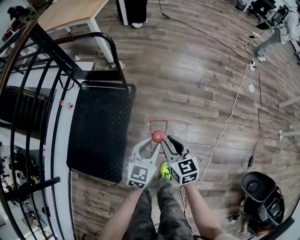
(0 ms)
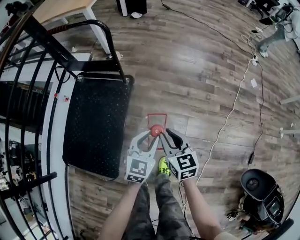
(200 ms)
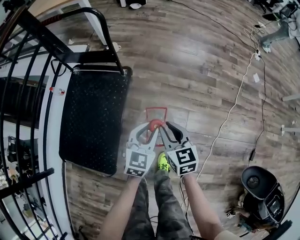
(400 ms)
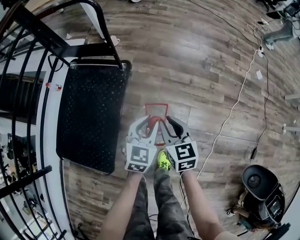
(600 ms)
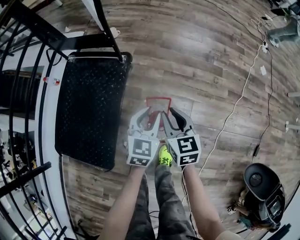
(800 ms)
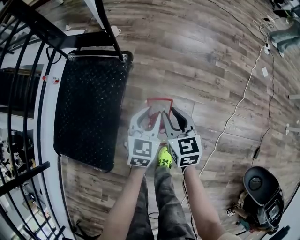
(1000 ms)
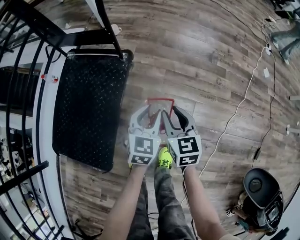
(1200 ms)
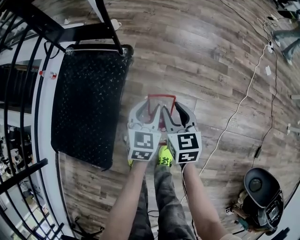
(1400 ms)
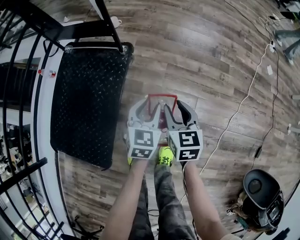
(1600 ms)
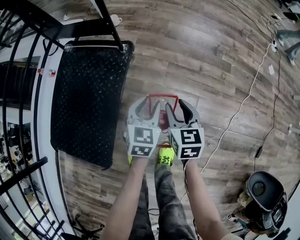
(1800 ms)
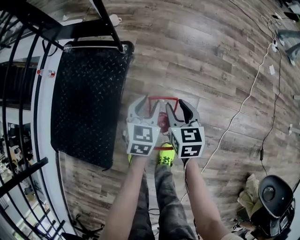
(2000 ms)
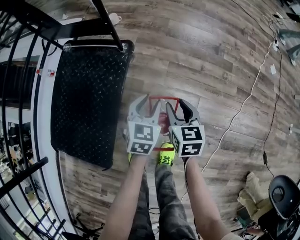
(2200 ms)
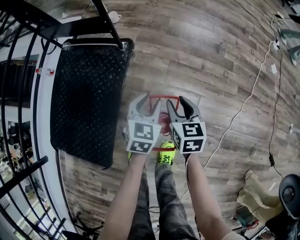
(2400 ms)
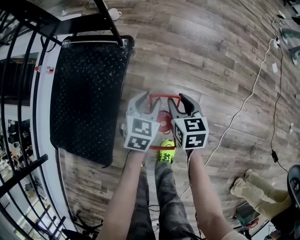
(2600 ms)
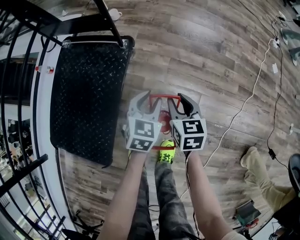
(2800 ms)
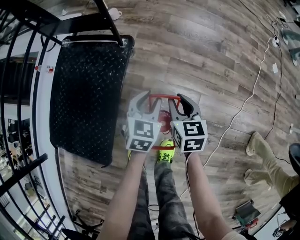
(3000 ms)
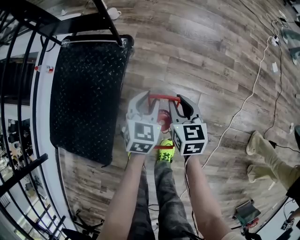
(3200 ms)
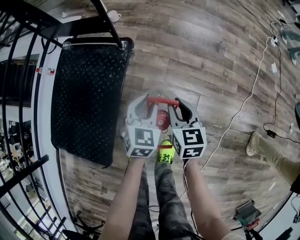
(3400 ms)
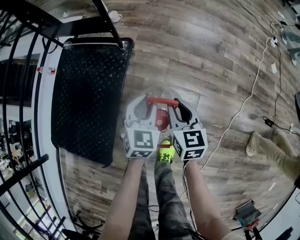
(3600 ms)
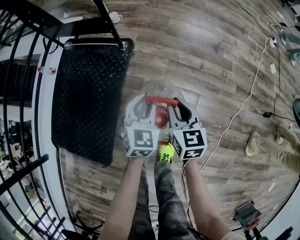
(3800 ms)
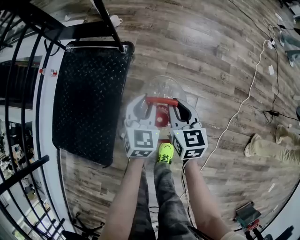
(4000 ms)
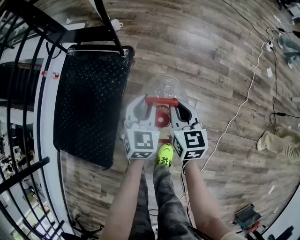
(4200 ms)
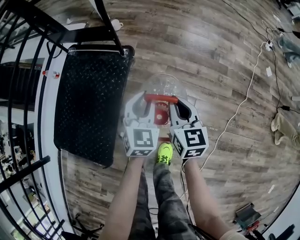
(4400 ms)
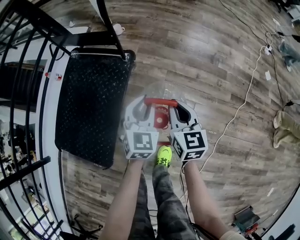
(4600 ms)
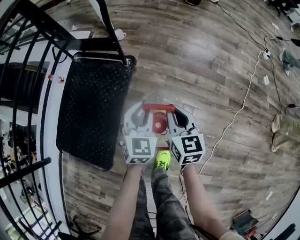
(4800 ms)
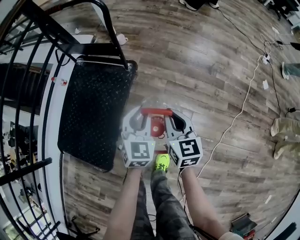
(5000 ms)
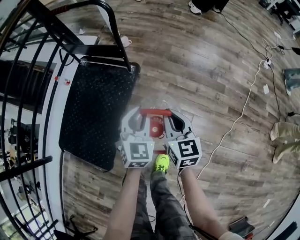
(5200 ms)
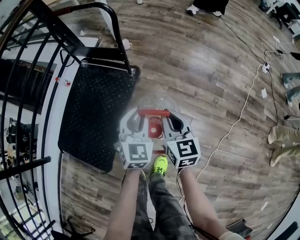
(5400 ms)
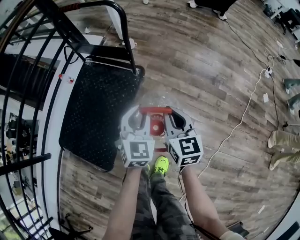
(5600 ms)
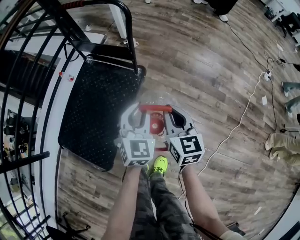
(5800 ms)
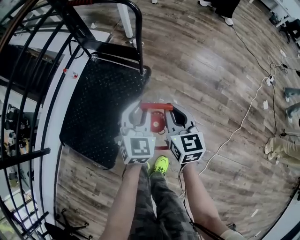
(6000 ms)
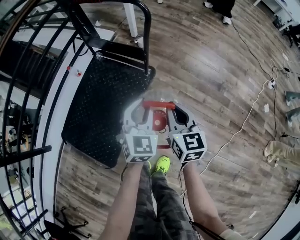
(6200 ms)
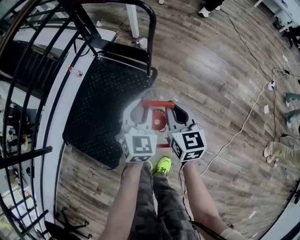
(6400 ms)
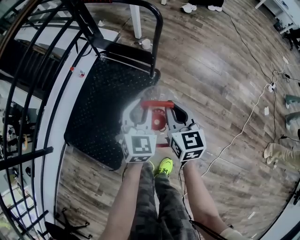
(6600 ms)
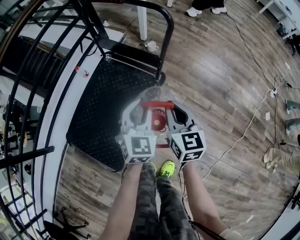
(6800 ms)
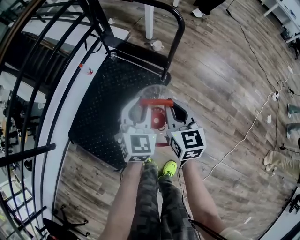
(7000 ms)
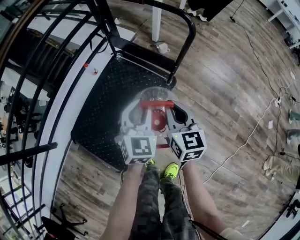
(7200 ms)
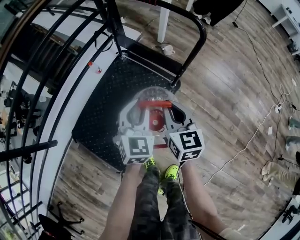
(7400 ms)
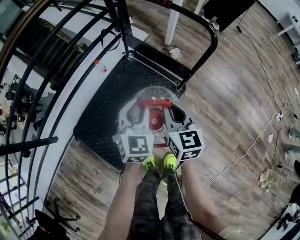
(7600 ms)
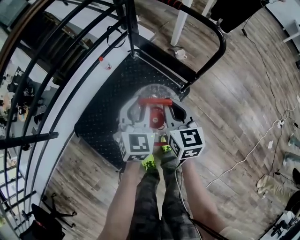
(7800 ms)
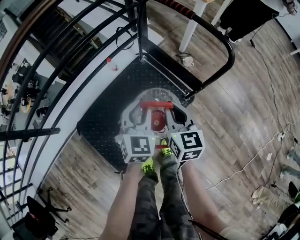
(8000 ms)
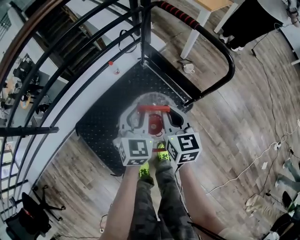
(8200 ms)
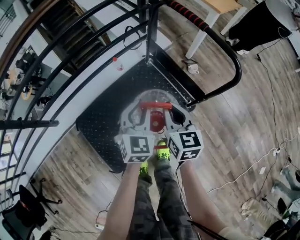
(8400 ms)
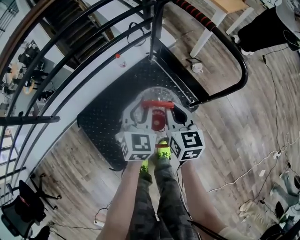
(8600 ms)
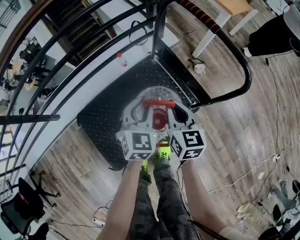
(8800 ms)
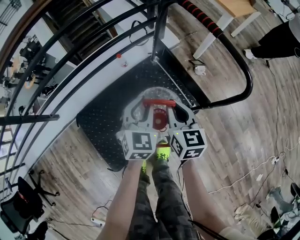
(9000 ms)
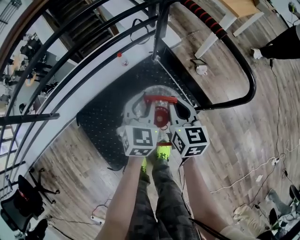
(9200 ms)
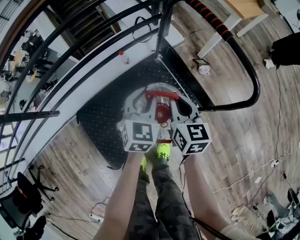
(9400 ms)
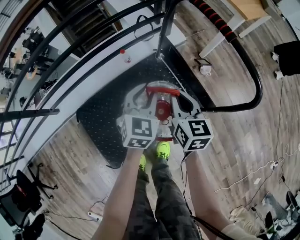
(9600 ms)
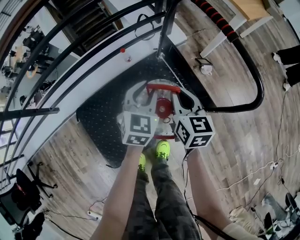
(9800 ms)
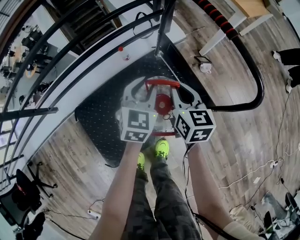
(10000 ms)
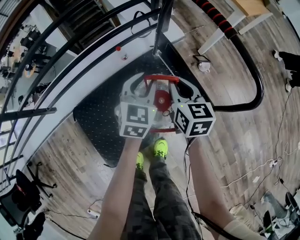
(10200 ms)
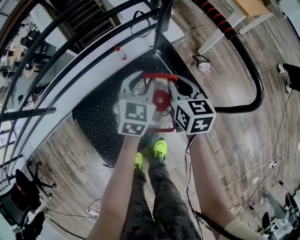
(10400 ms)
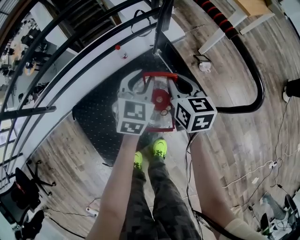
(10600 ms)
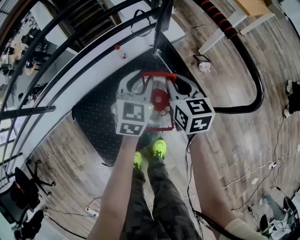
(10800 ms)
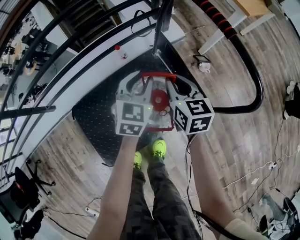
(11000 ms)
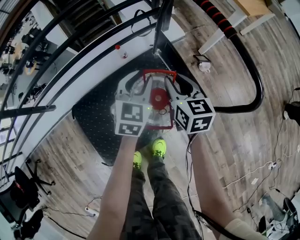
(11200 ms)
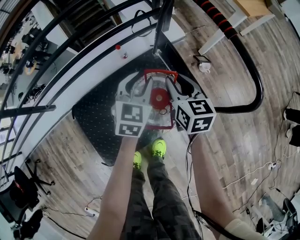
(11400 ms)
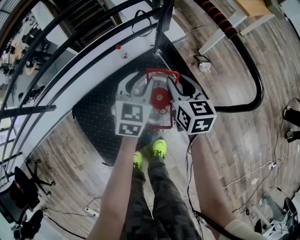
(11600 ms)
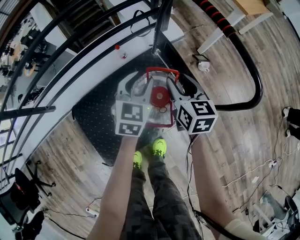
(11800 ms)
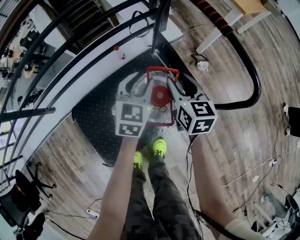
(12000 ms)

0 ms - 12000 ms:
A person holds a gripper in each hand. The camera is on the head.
0 ms - 1600 ms: The grippers both shift downward by about 20 cm.
1600 ms - 3000 ms: The right gripper moves roughly 5 cm. The left gripper changes place by about 5 cm.
3000 ms - 4400 ms: Both grippers move upward, about 10 cm.
4400 ms - 6000 ms: Both grippers travel together upward and to the left, approximately 15 cm.
6000 ms - 7600 ms: The grippers both shift to the left and forward by about 30 cm.
7600 ms - 9000 ms: The grippers both shift forward by about 15 cm.
9000 ms - 10400 ms: Both grippers move forward, some 10 cm.
10400 ms - 12000 ms: The right gripper opens its fingers.

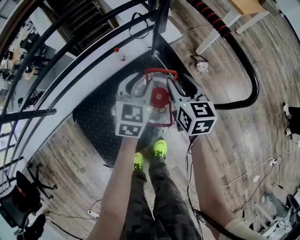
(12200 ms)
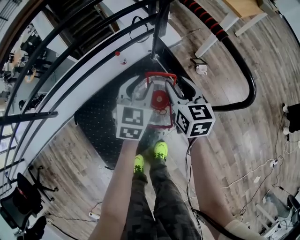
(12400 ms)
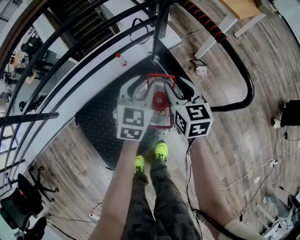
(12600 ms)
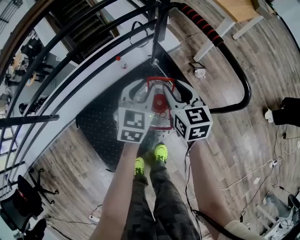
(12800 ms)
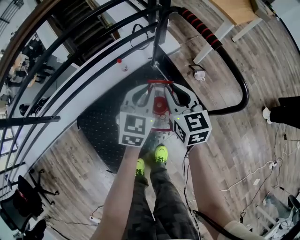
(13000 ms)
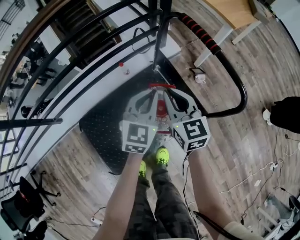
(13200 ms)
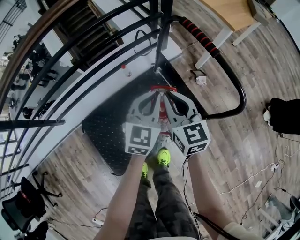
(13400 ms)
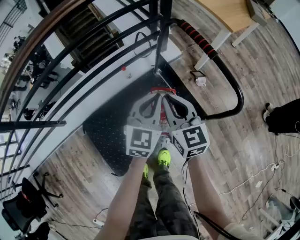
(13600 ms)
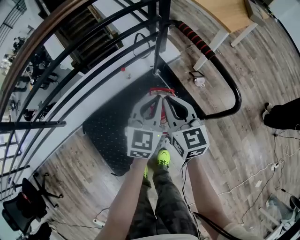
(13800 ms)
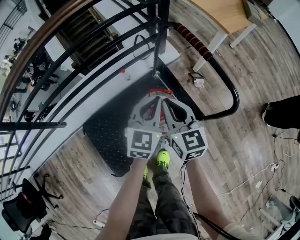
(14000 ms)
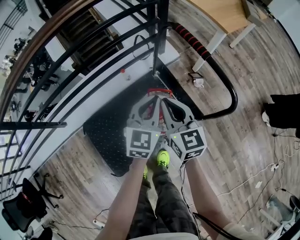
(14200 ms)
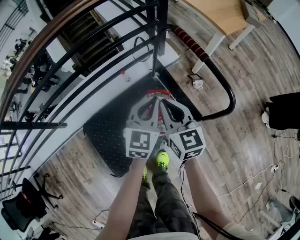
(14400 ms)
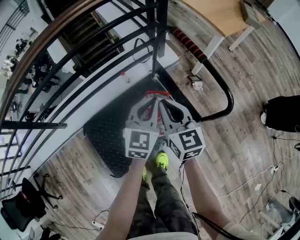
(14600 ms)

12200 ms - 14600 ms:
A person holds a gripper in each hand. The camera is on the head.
12200 ms - 13400 ms: The grippers both shift upward by some 10 cm. The left gripper closes its fingers. Meanwhile the right gripper closes its fingers.
13400 ms - 14600 ms: The left gripper ends up approximately 5 cm from where it was. Meanwhile the right gripper shifts by roughly 5 cm.

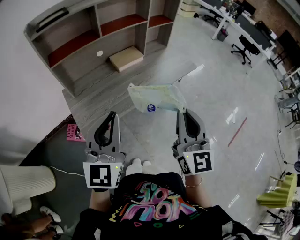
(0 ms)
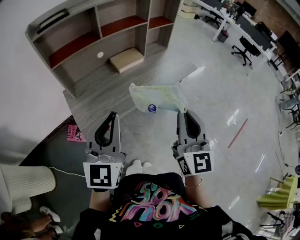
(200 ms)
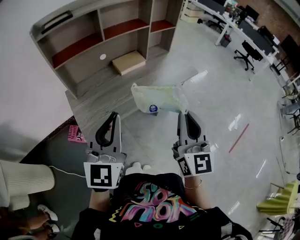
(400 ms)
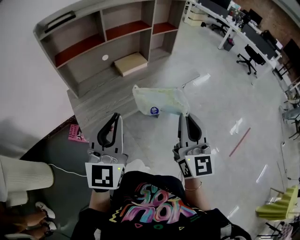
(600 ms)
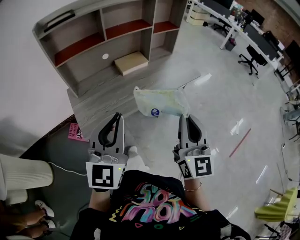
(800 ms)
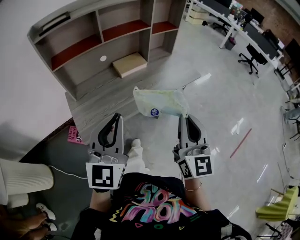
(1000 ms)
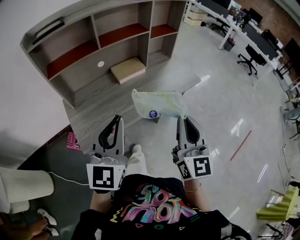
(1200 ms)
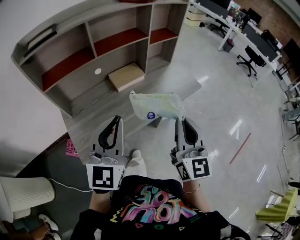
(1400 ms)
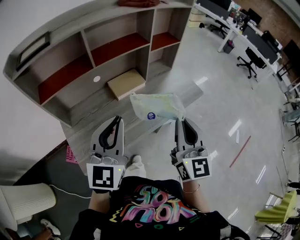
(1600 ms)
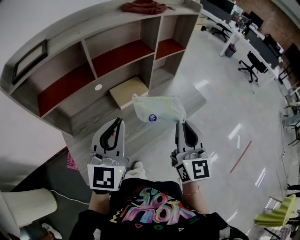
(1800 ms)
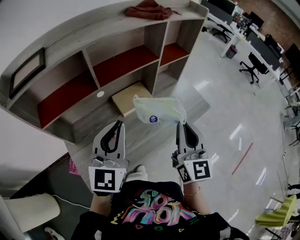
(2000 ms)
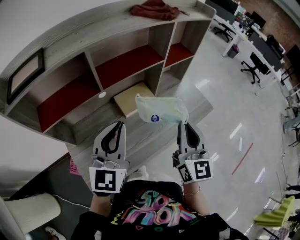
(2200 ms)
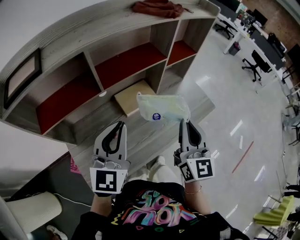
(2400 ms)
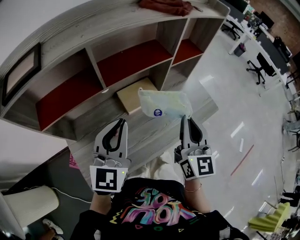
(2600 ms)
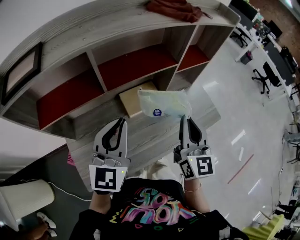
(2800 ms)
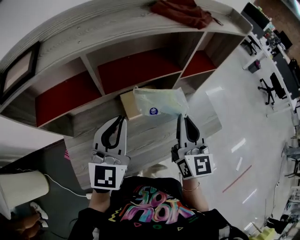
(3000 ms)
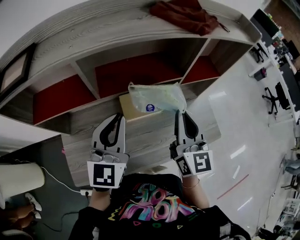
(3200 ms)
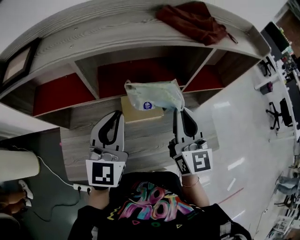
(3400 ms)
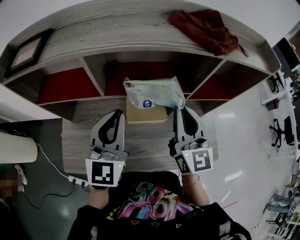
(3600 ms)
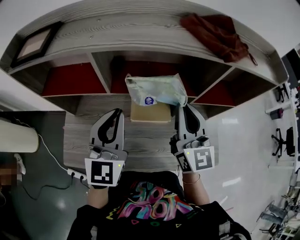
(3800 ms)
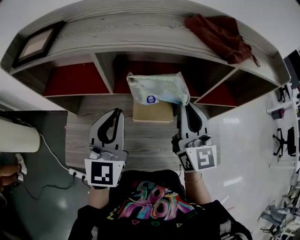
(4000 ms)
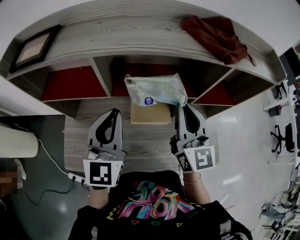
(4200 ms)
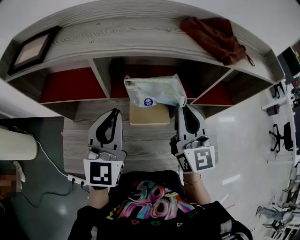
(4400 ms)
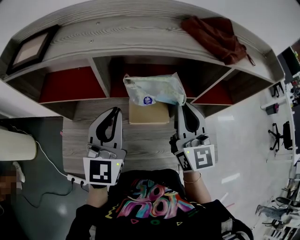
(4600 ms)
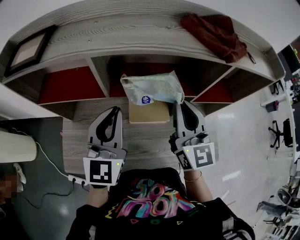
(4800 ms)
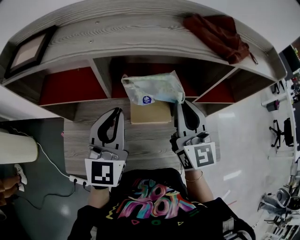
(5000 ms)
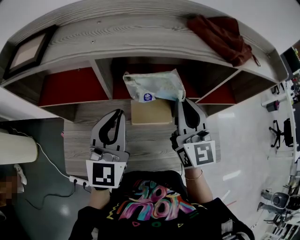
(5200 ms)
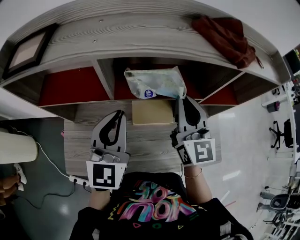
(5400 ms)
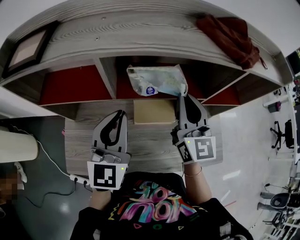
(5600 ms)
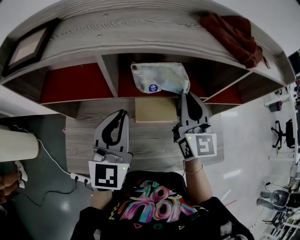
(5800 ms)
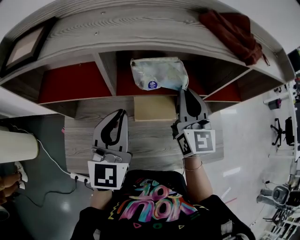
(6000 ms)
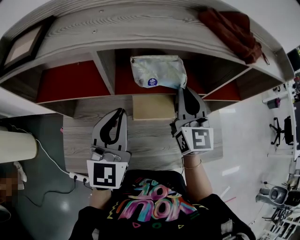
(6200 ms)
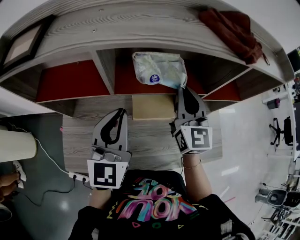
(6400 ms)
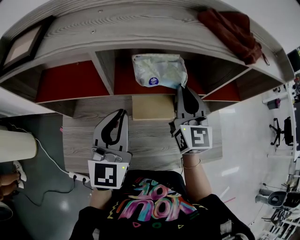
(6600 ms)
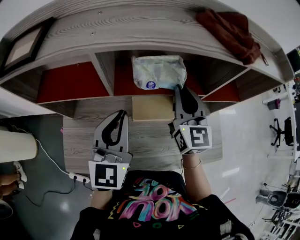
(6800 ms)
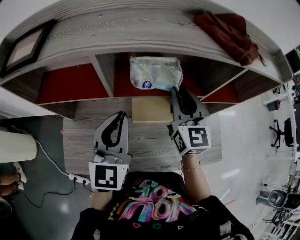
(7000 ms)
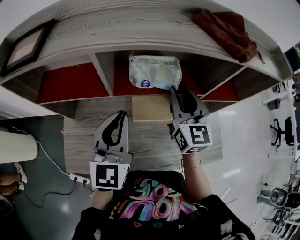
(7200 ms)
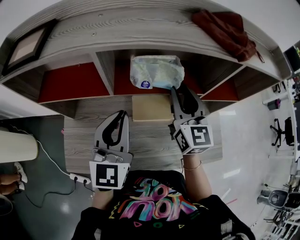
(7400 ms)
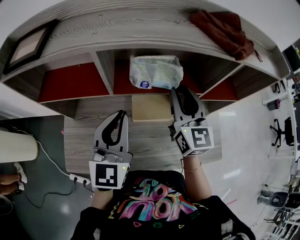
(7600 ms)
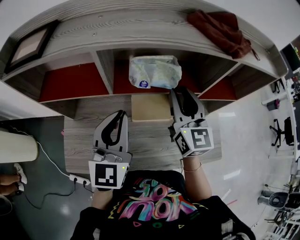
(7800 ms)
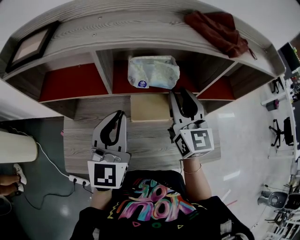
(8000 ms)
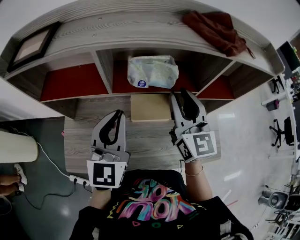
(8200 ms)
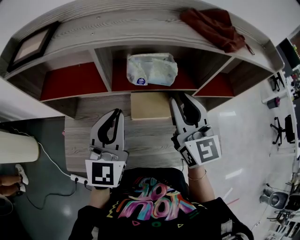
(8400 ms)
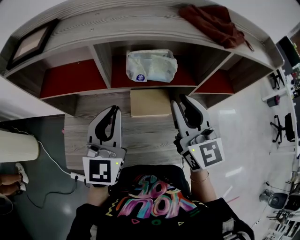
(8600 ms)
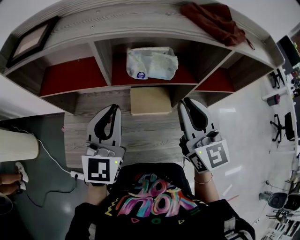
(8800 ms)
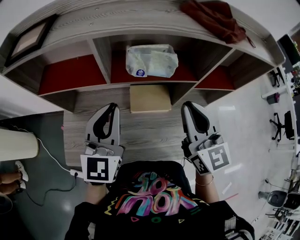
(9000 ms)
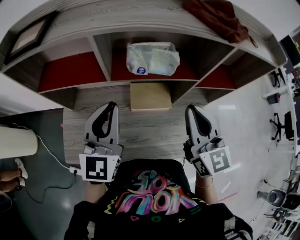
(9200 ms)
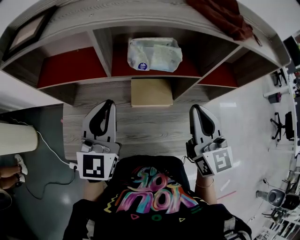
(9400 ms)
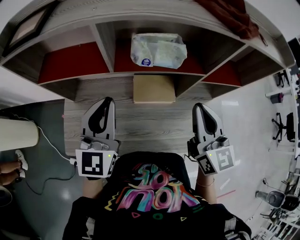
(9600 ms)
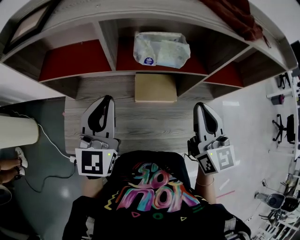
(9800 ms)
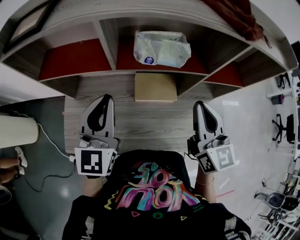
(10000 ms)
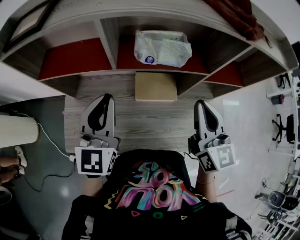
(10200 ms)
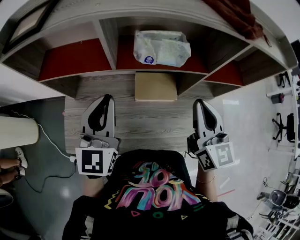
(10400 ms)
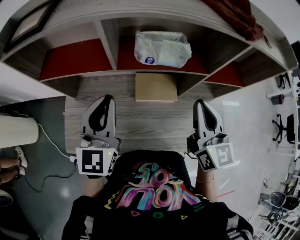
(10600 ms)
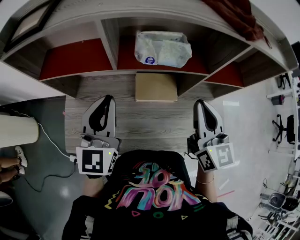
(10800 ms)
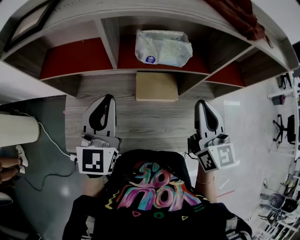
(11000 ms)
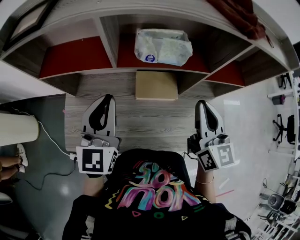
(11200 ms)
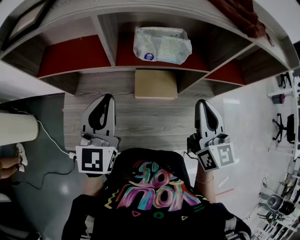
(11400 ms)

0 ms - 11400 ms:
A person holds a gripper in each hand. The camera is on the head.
0 ms - 1400 ms: Both grippers move forward, roughly 15 cm.
1400 ms - 2800 ms: The two grippers go some 25 cm forward.
2800 ms - 4200 ms: The left gripper moves approximately 5 cm, and swivels about 30 degrees. The right gripper moves about 15 cm, and swivels about 30 degrees.
4200 ms - 5600 ms: The right gripper shifts by some 5 cm.
5600 ms - 7200 ms: The right gripper opens its fingers.
7200 ms - 8600 ms: The right gripper heads backward, covering some 10 cm.
8600 ms - 10000 ms: The right gripper shifts by approximately 5 cm.
10000 ms - 11400 ms: The grippers move only a little.
